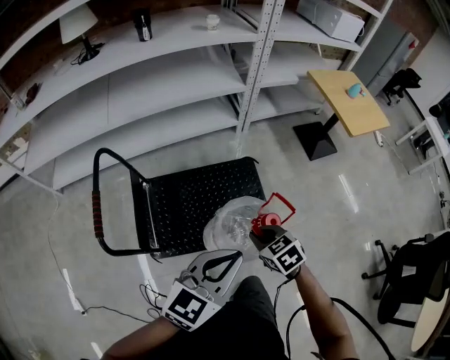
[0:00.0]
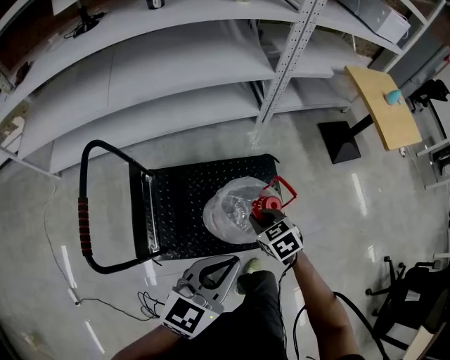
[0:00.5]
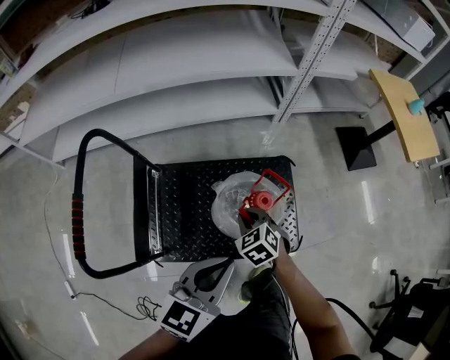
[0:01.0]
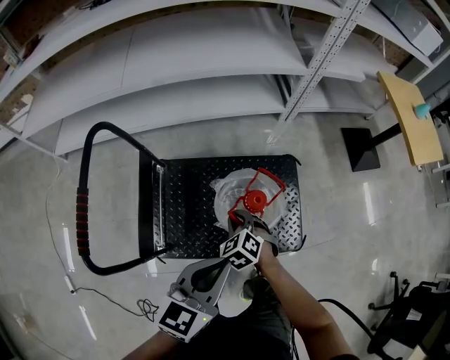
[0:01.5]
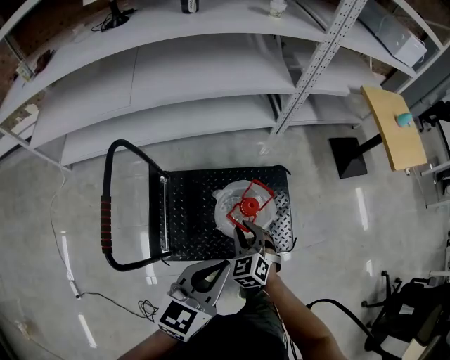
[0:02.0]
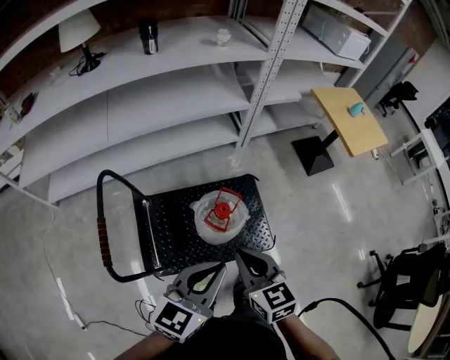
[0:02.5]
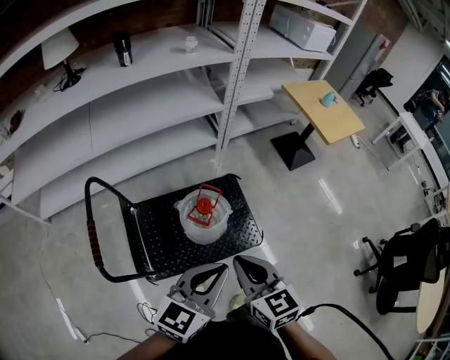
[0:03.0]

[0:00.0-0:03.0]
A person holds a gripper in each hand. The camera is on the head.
0:00.0 to 0:01.5: The grippers both shift downward, forward and to the left by approximately 35 cm. The left gripper swivels approximately 20 degrees. The right gripper turns by roughly 30 degrees.
0:01.5 to 0:03.0: The right gripper travels upward and backward by roughly 50 cm, and tilts its fingers about 30 degrees upward. Meanwhile the left gripper is displaced upward and backward by roughly 30 cm, and turns by roughly 20 degrees.

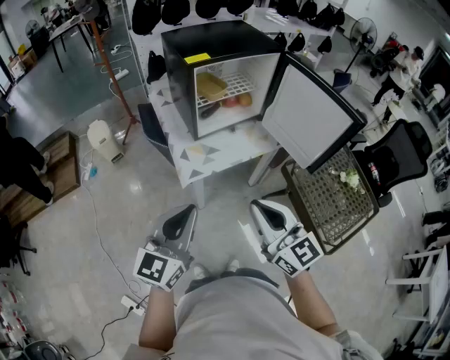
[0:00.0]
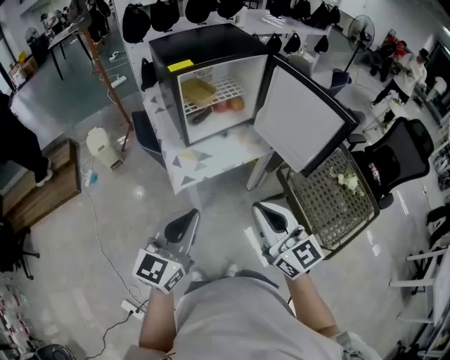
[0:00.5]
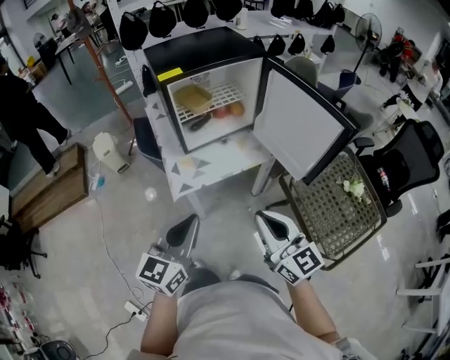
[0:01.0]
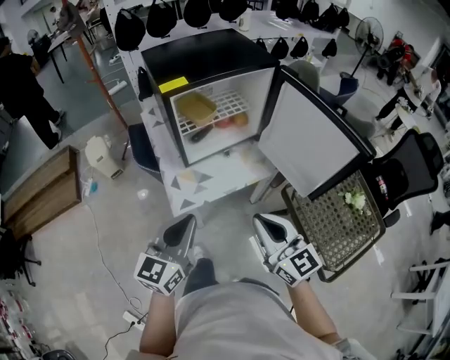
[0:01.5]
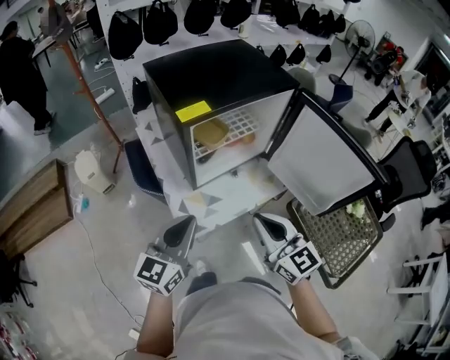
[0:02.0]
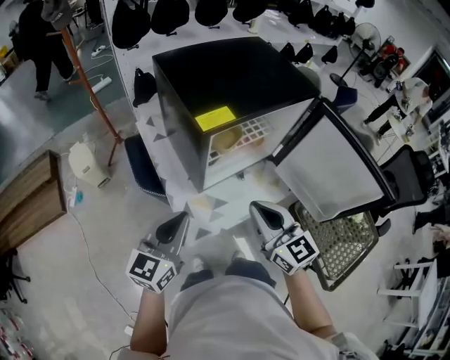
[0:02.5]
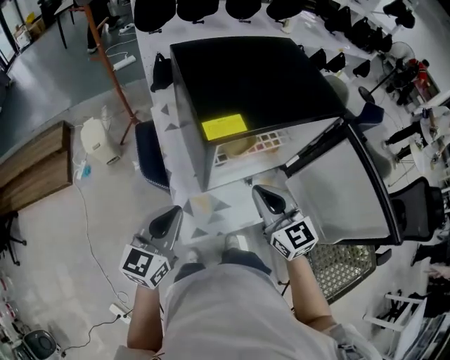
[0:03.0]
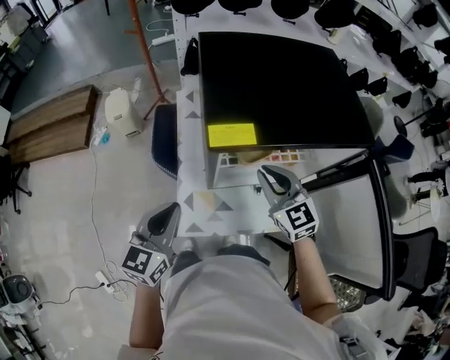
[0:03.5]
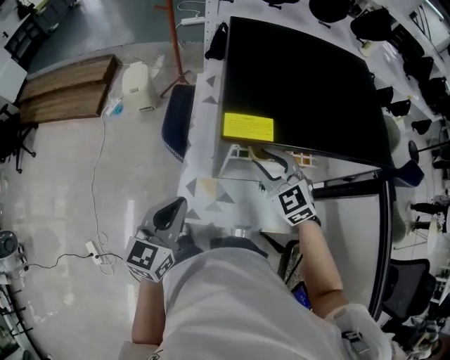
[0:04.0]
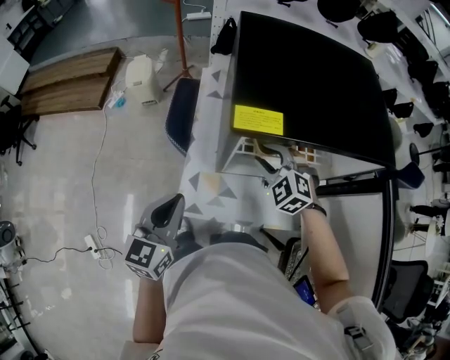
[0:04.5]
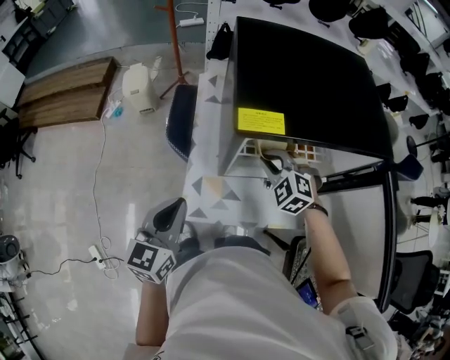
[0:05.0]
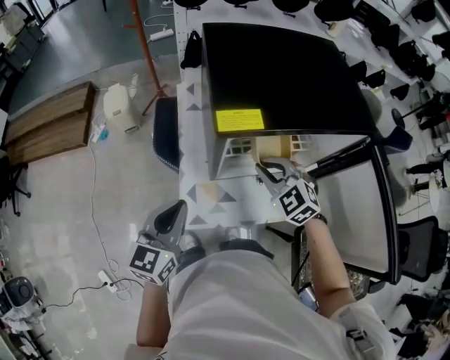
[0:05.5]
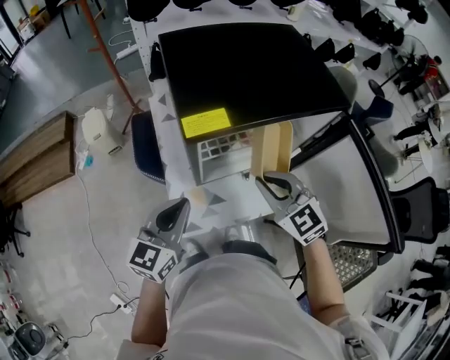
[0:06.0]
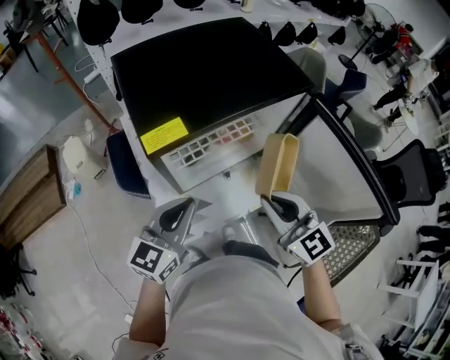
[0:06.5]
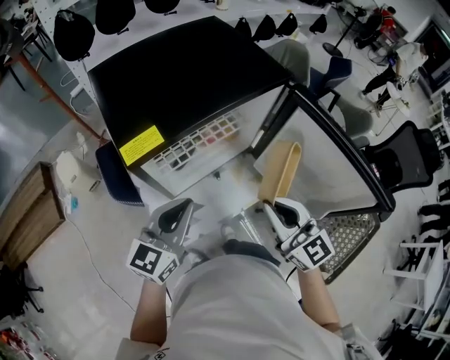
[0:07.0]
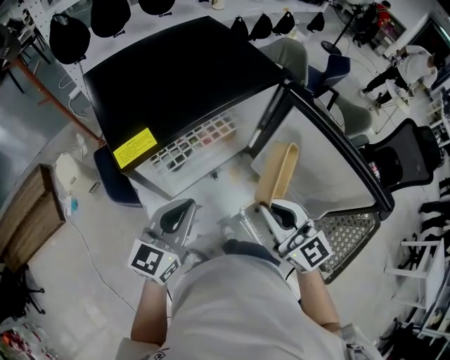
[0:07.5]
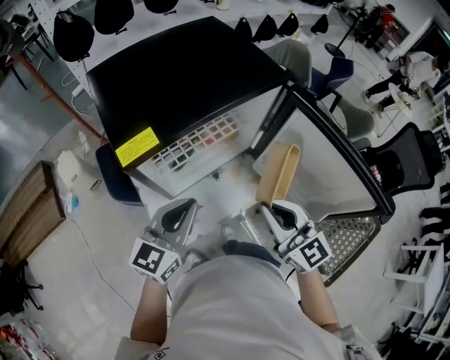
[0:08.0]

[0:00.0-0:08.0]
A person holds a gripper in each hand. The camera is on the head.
0:00.0 to 0:02.0: The two grippers go approximately 25 cm forward.
0:02.0 to 0:04.0: The right gripper ends up approximately 30 cm from where it was, turns by about 50 degrees, and opens up. The left gripper ends up some 10 cm from where it was, and rotates roughly 40 degrees.
0:04.0 to 0:06.0: The left gripper turns by about 20 degrees, while the right gripper travels backward and upward by roughly 10 cm, and closes its fingers.
0:06.0 to 0:08.0: The right gripper shifts about 15 cm to the right and backward, and swivels about 30 degrees; the left gripper moves to the right, some 10 cm.

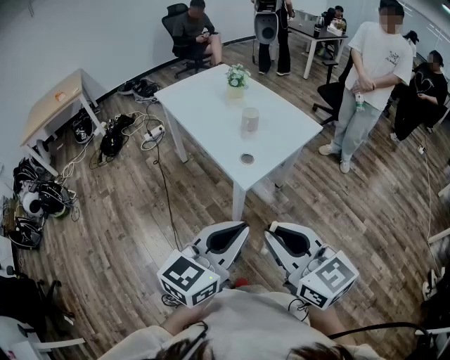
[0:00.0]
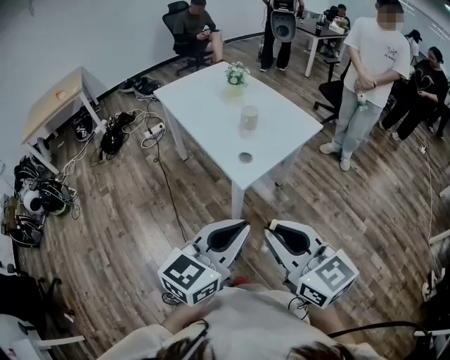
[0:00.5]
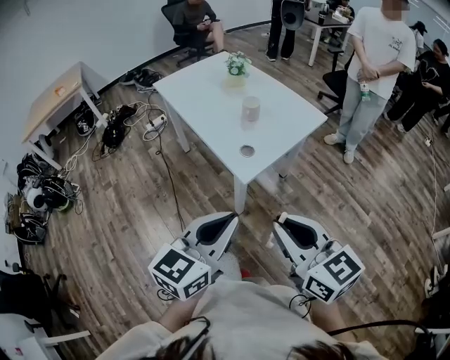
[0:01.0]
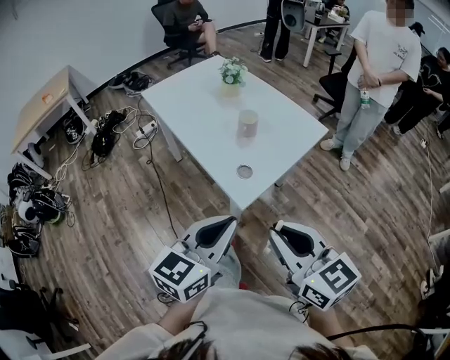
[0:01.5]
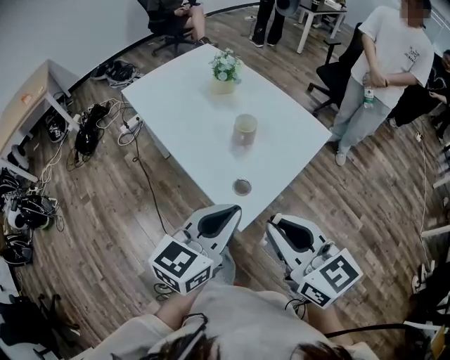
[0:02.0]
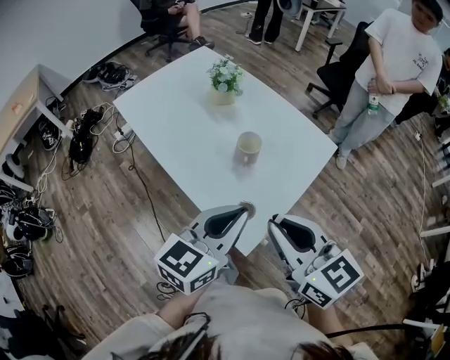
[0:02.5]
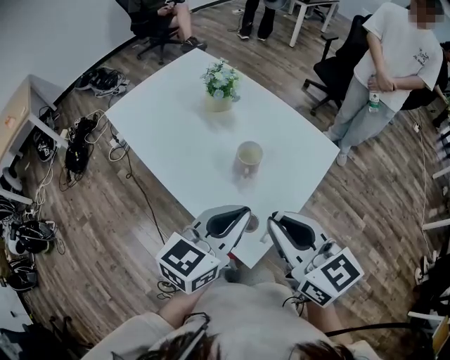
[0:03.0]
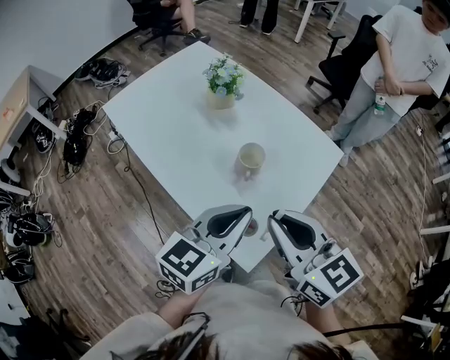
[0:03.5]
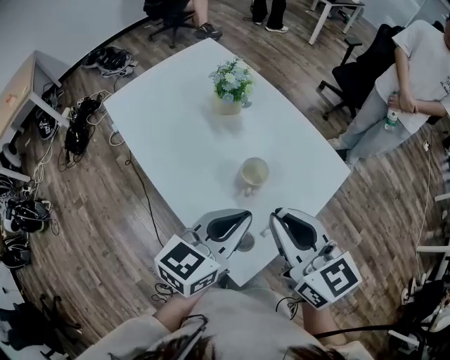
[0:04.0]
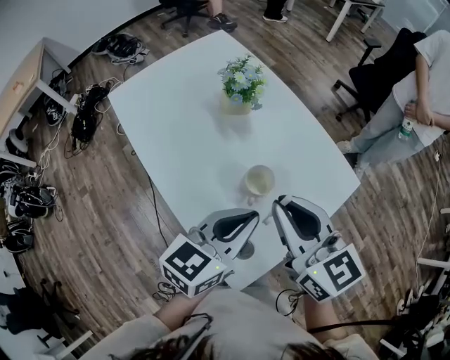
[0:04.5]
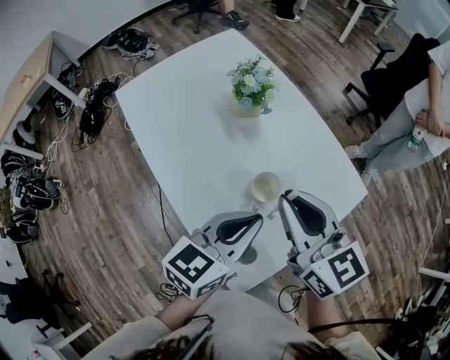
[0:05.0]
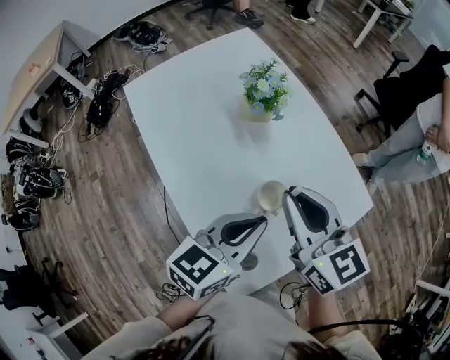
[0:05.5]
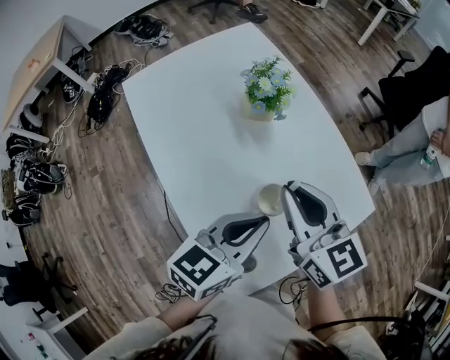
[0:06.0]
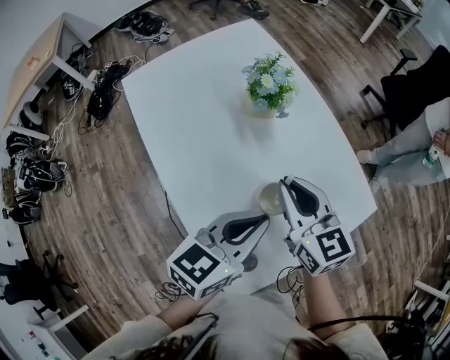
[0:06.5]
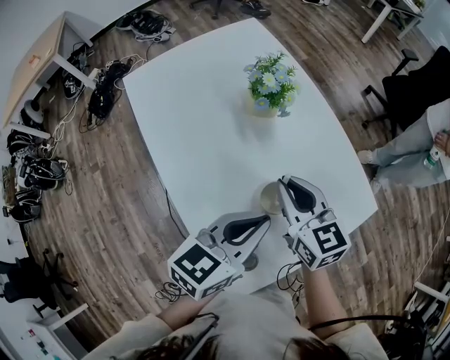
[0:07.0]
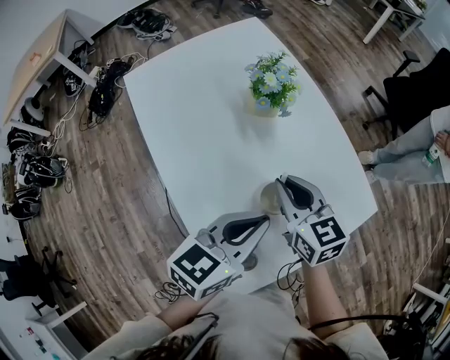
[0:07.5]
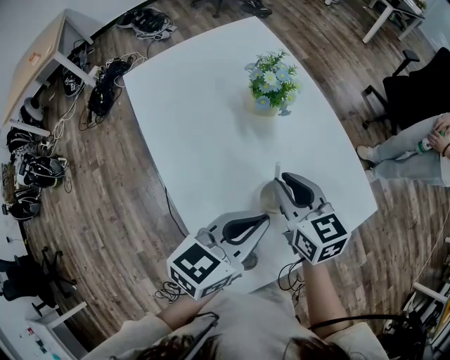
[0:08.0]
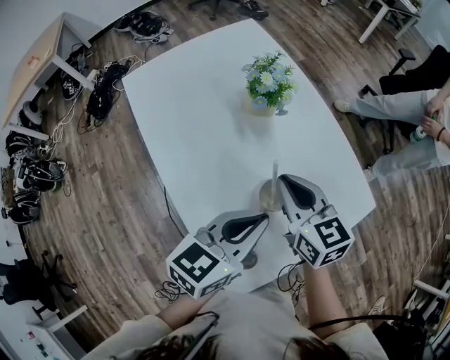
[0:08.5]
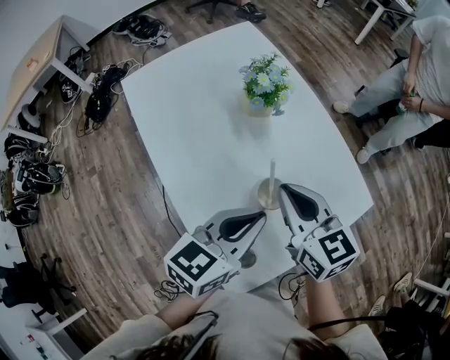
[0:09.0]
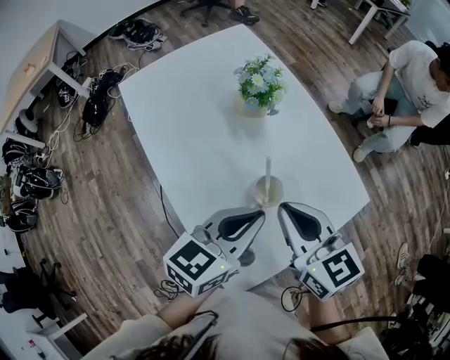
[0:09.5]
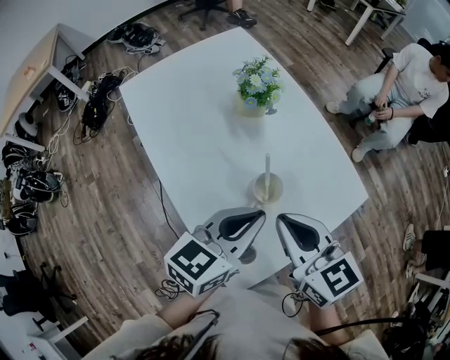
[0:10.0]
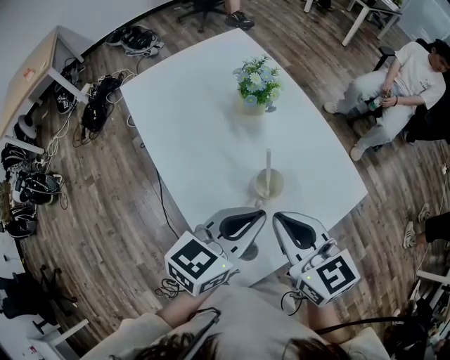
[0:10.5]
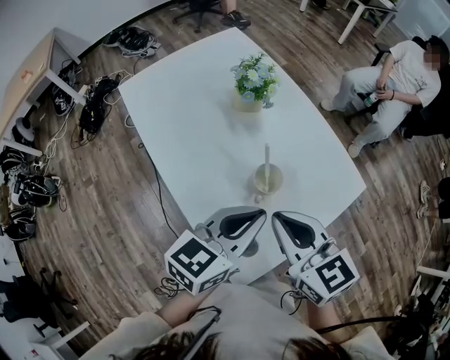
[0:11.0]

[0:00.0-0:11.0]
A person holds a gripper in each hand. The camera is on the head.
0:00.0 to 0:02.0: Both grippers travel together forward, roughly 25 cm.
0:02.0 to 0:03.5: Both grippers move forward, about 15 cm.
0:03.5 to 0:05.5: The right gripper shifts about 20 cm forward, while the left gripper is displaced forward by roughly 10 cm.
0:05.5 to 0:07.5: The right gripper goes some 10 cm downward.
0:07.5 to 0:09.0: The right gripper is displaced upward by about 5 cm.
0:09.0 to 0:11.0: The right gripper shifts about 10 cm backward.

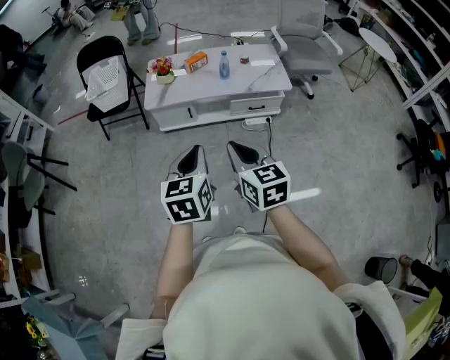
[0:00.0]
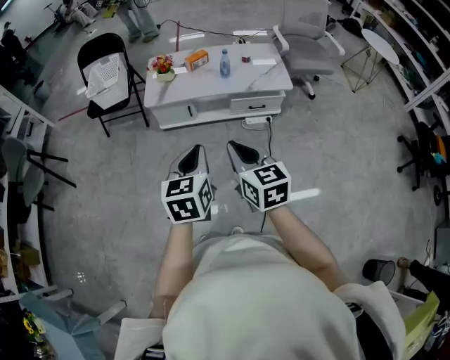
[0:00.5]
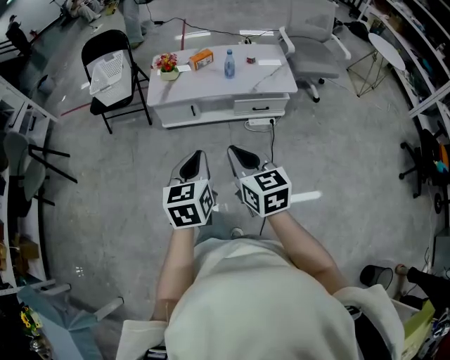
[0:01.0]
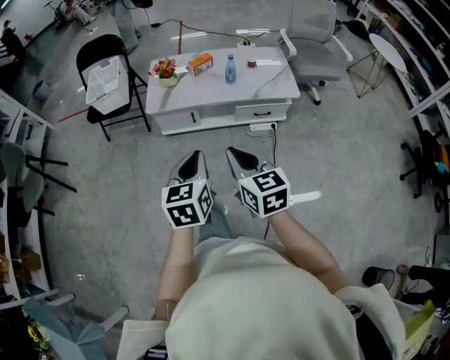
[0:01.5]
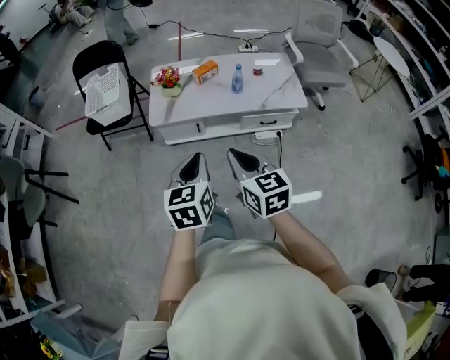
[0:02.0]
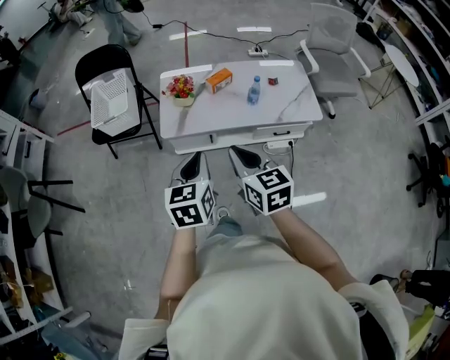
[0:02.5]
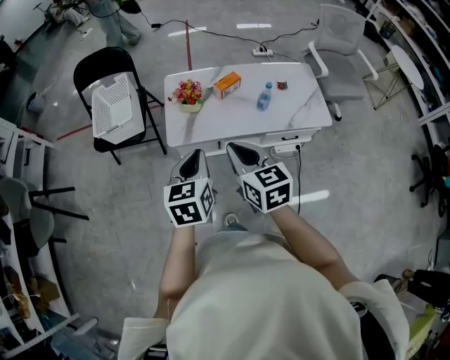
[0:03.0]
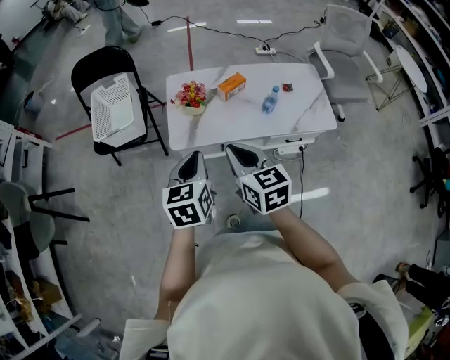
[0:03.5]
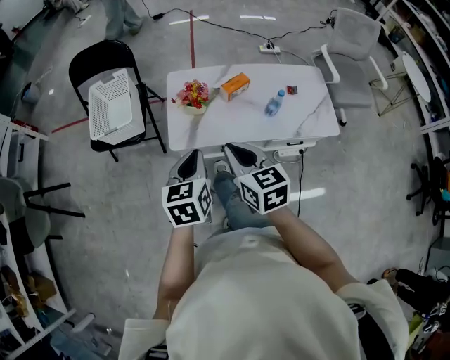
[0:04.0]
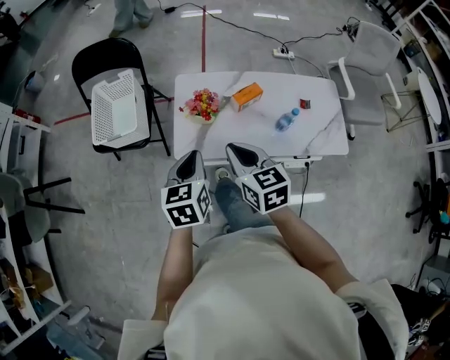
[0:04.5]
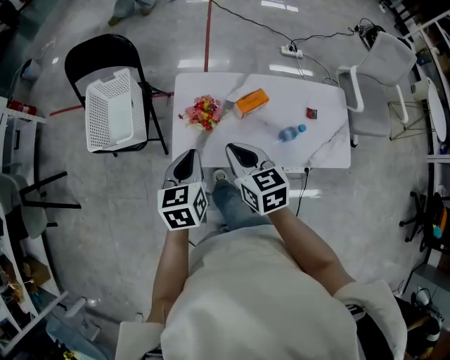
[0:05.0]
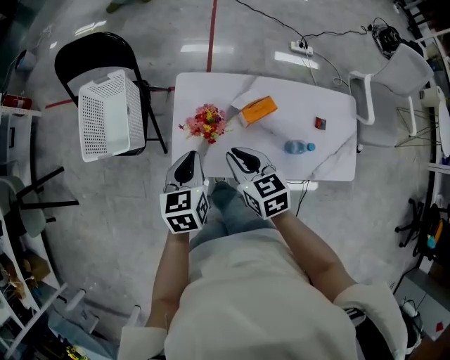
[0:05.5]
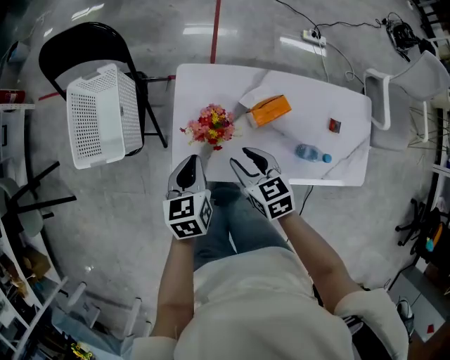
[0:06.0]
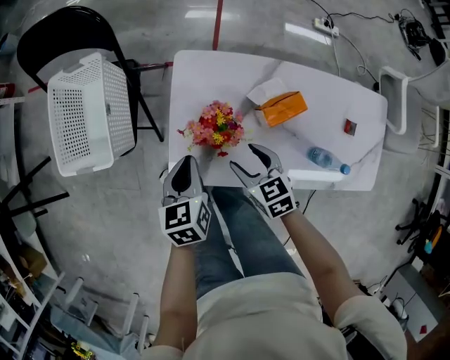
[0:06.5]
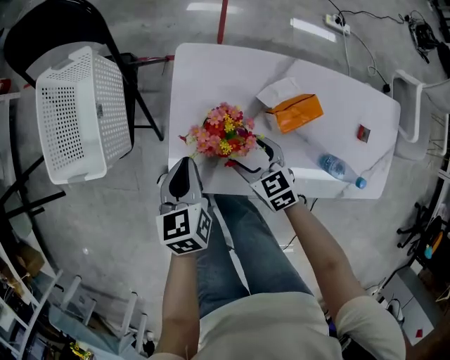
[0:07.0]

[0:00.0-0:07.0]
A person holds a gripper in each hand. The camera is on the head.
0:00.0 to 0:02.0: Both grippers move forward, roughly 15 cm.
0:02.0 to 0:03.5: The two grippers go approximately 25 cm forward and to the left.
0:03.5 to 0:05.0: The grippers both shift forward by roughly 20 cm.
0:05.0 to 0:07.0: Both grippers move downward and forward, about 30 cm. The right gripper swivels some 20 degrees, and opens up.
